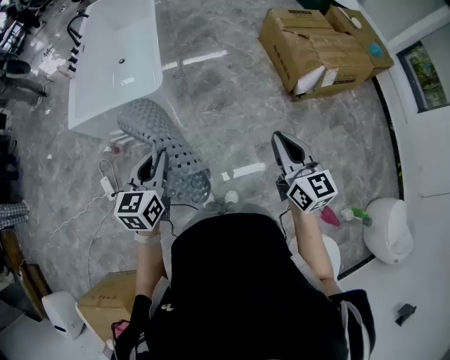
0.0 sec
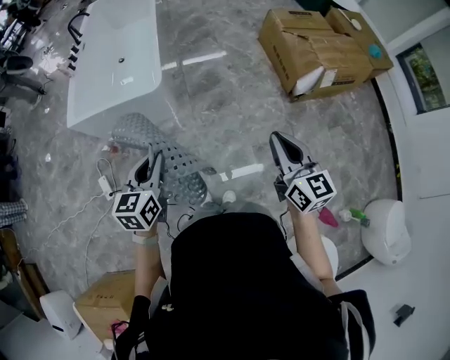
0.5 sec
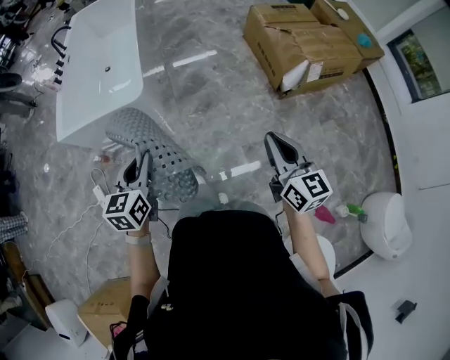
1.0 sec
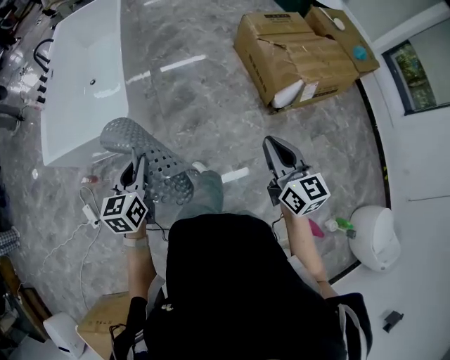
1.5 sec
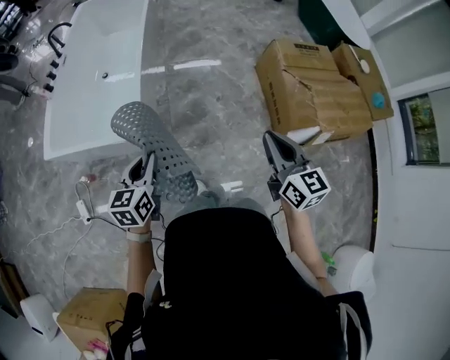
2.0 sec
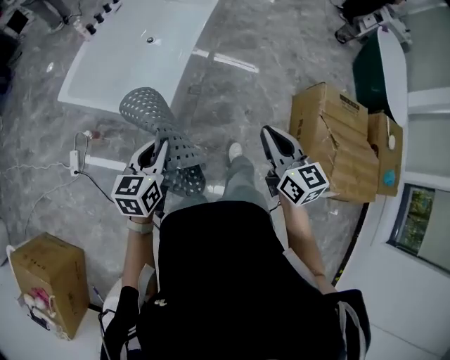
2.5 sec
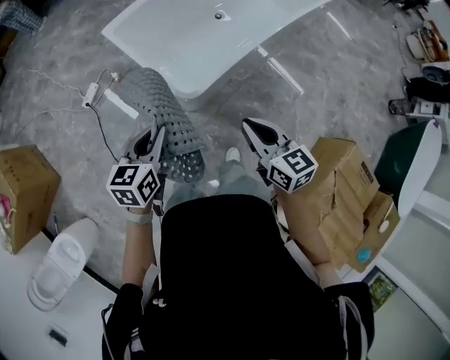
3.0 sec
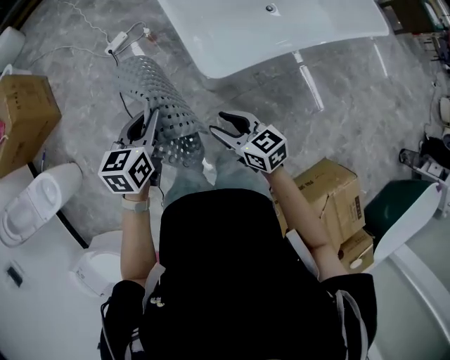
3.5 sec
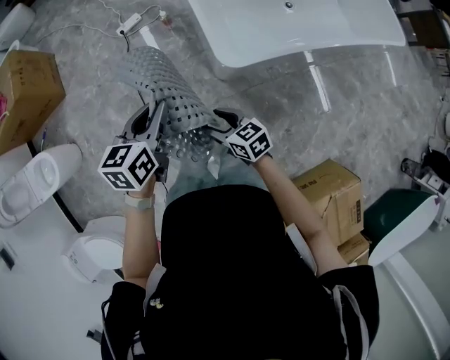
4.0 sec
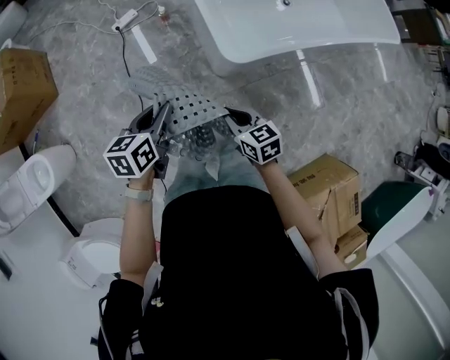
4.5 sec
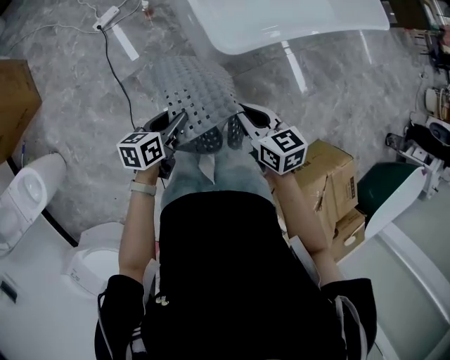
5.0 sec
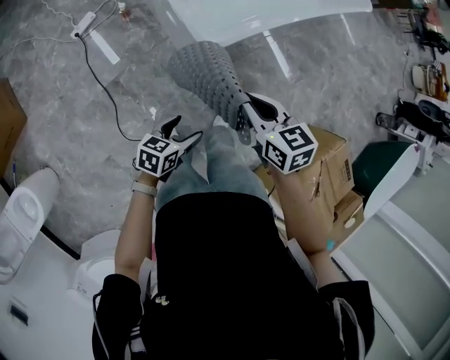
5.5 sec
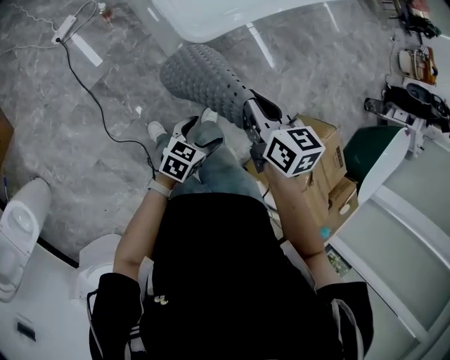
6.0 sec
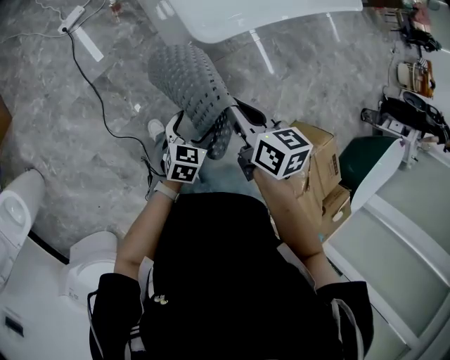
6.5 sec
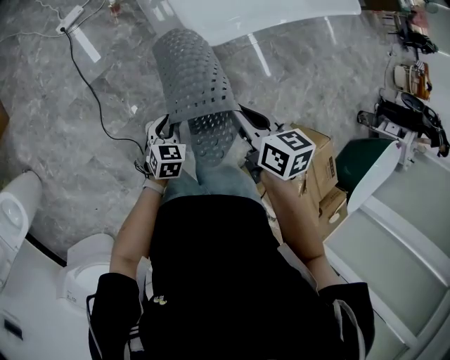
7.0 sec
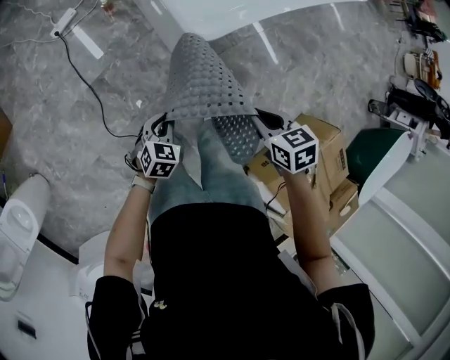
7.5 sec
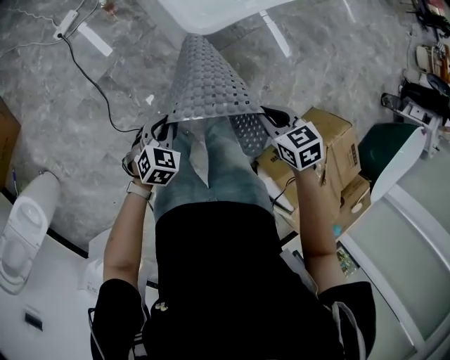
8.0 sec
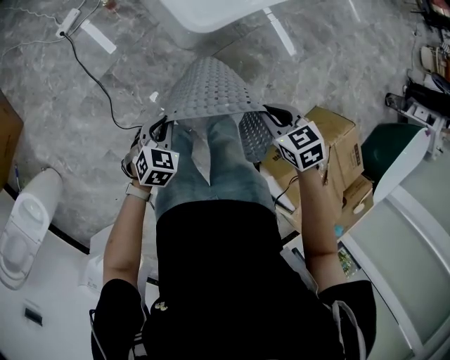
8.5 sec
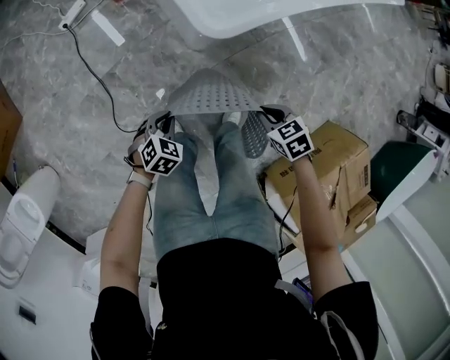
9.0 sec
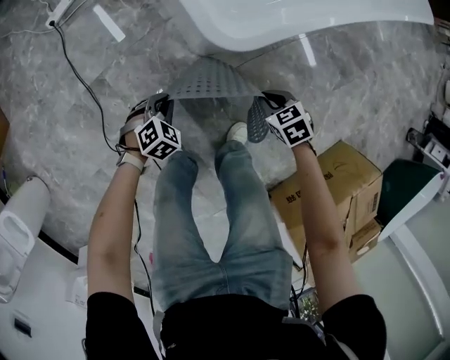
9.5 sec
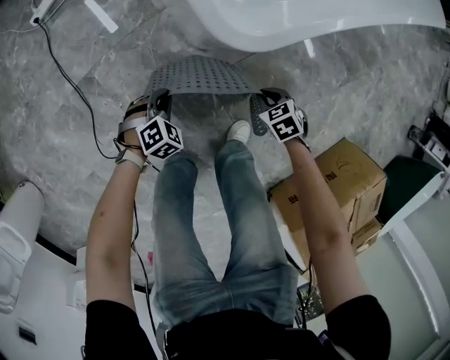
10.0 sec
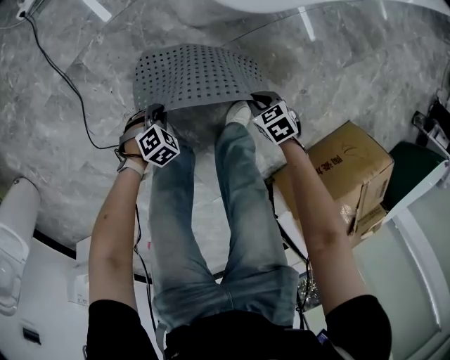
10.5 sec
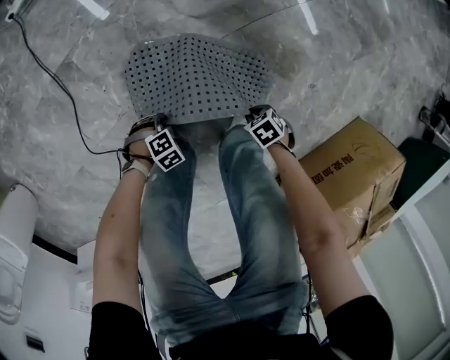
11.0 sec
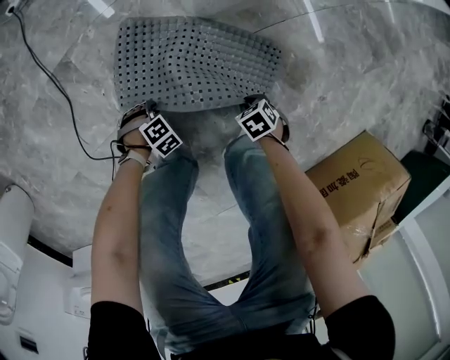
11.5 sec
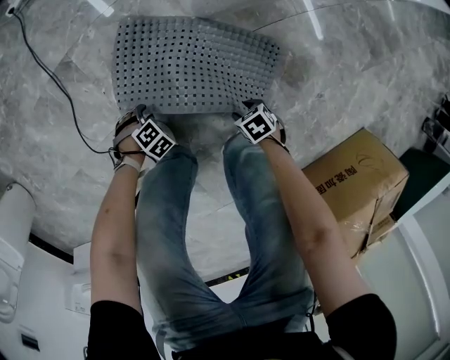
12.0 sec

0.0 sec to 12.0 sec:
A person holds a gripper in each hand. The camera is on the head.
0.0 sec to 2.0 sec: Both grippers move forward, approximately 35 cm.
2.0 sec to 4.0 sec: The right gripper ends up approximately 40 cm from where it was, swivels some 110 degrees, and opens. Meanwhile the left gripper changes place by some 10 cm, and rotates roughly 70 degrees.
4.0 sec to 6.0 sec: The left gripper changes place by roughly 30 cm, changes its angle by roughly 50 degrees, and opens up; the right gripper is displaced upward by roughly 10 cm, swivels approximately 40 degrees, and closes.
6.0 sec to 8.0 sec: The right gripper goes some 15 cm downward, and rotates about 30 degrees. The left gripper ends up some 15 cm from where it was, turns by approximately 40 degrees, and closes.
8.0 sec to 10.0 sec: Both grippers move downward, some 40 cm. The left gripper swivels approximately 20 degrees.
10.0 sec to 12.0 sec: The grippers both shift downward by about 20 cm. The right gripper swivels approximately 20 degrees, and opens, while the left gripper rotates roughly 30 degrees.

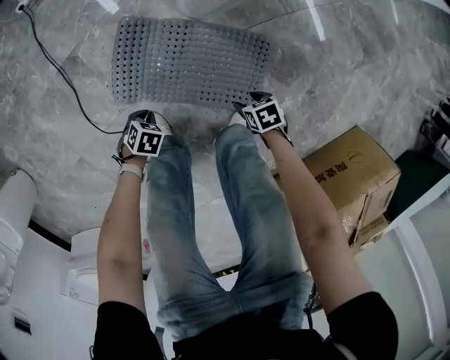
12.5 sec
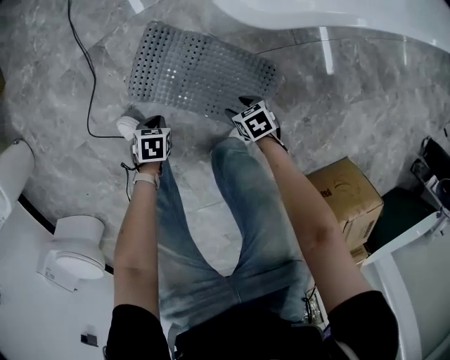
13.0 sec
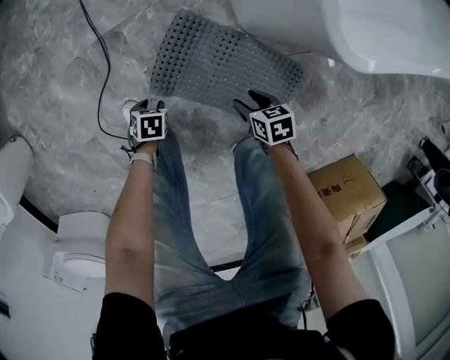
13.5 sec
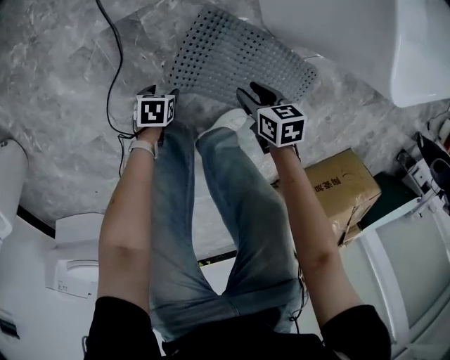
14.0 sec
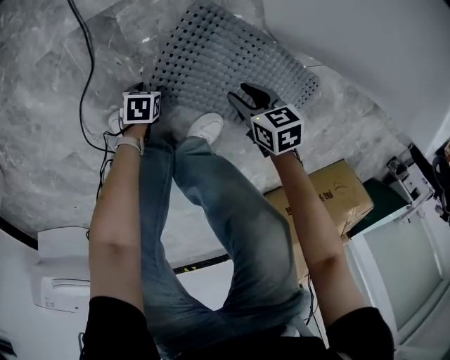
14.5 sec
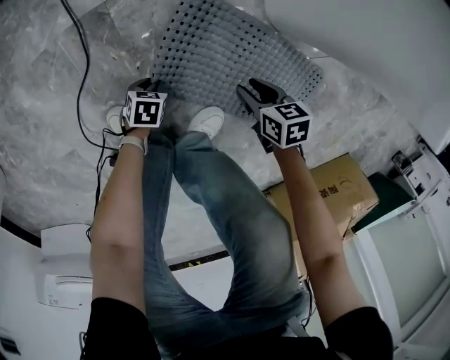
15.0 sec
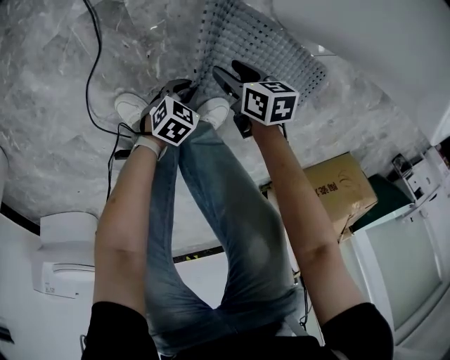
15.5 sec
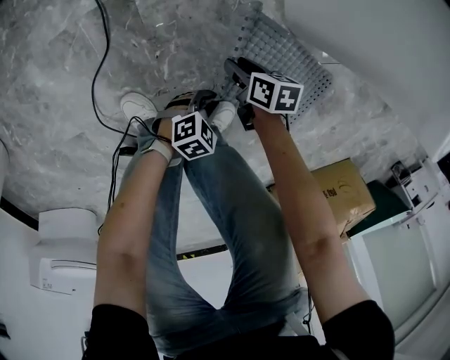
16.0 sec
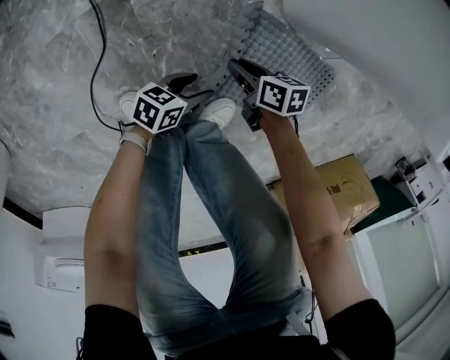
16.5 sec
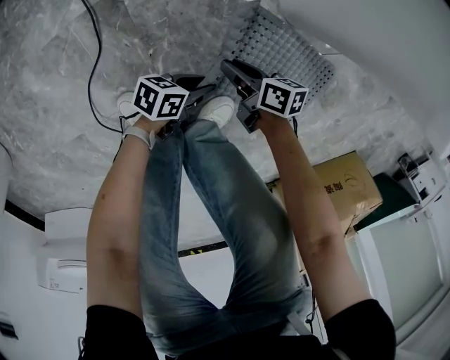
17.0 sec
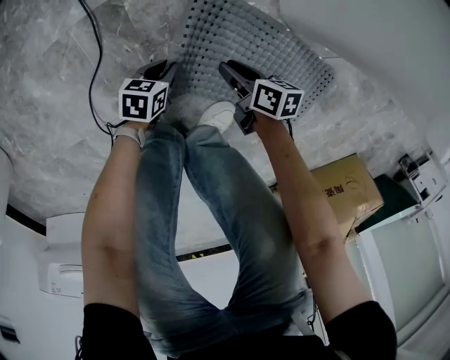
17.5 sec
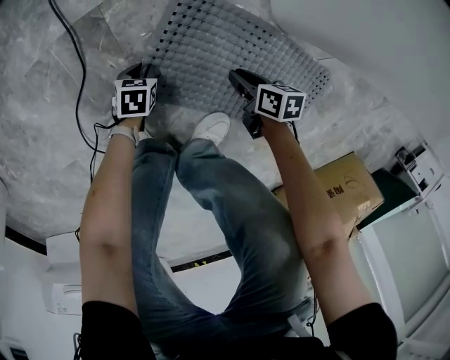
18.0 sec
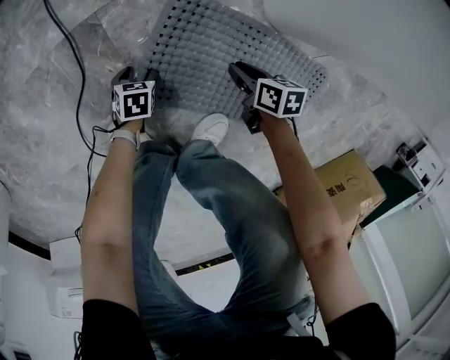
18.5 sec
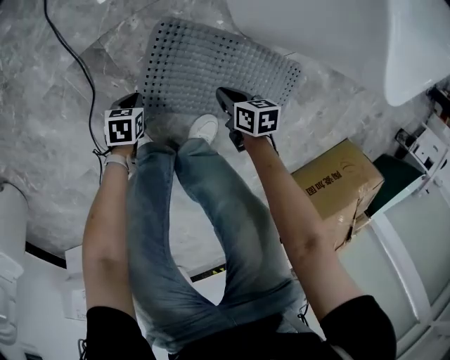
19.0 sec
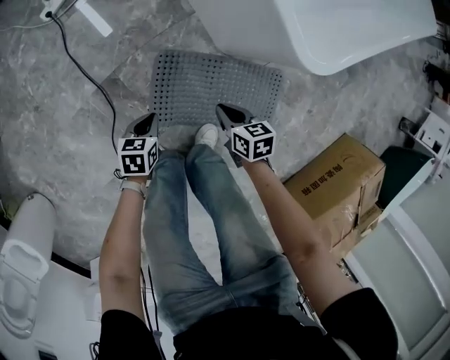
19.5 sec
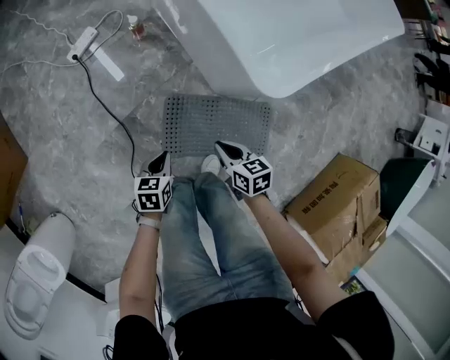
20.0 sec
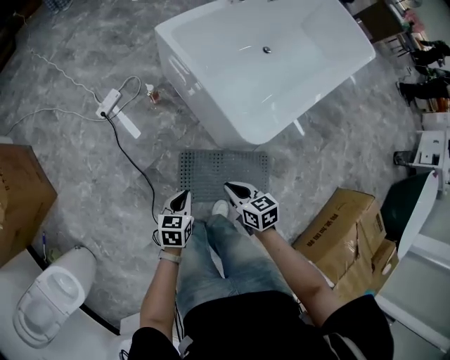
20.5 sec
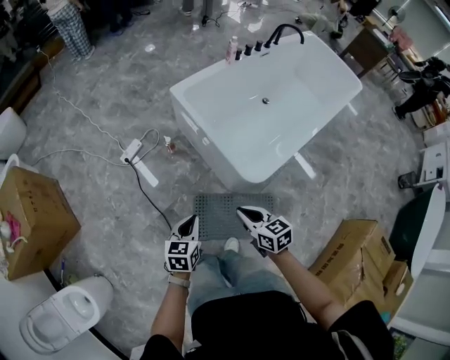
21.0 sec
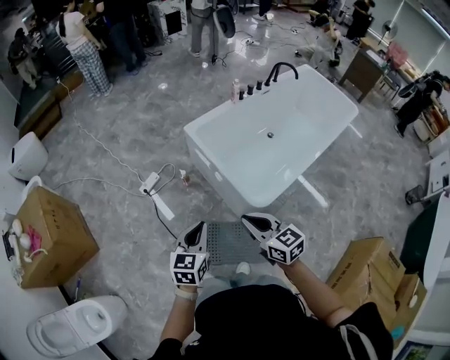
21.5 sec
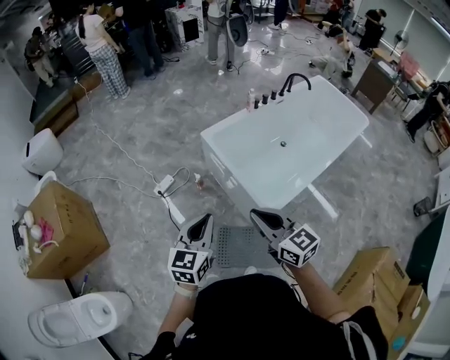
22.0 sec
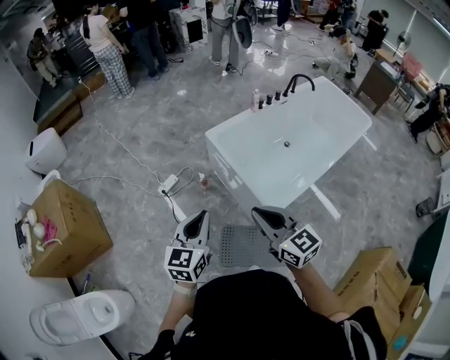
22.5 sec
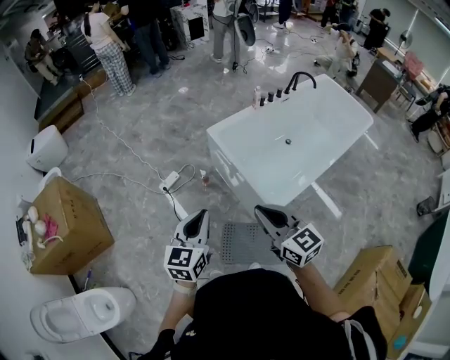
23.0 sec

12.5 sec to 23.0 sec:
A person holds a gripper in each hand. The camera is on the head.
12.5 sec to 14.5 sec: The right gripper travels upward and back again, approximately 5 cm each way; the left gripper ends up about 25 cm from where it was, turns by roughly 40 degrees, and opens.
14.5 sec to 16.5 sec: The right gripper shifts by about 5 cm, turns by some 30 degrees, and closes up; the left gripper shifts approximately 10 cm upward, tips its fingers upward by roughly 40 degrees, and closes, then reopens.
16.5 sec to 19.0 sec: The left gripper goes downward and returns, about 15 cm each way, angles its fingers downward, by roughly 30 degrees, and closes its fingers; the right gripper moves upward, roughly 5 cm.
19.0 sec to 21.0 sec: The two grippers go approximately 70 cm upward. The left gripper angles its fingers upward, by about 30 degrees. Meanwhile the right gripper rotates approximately 40 degrees.
21.0 sec to 23.0 sec: Both grippers travel together upward, roughly 30 cm. The right gripper changes its angle by approximately 30 degrees; the left gripper changes its angle by roughly 30 degrees.

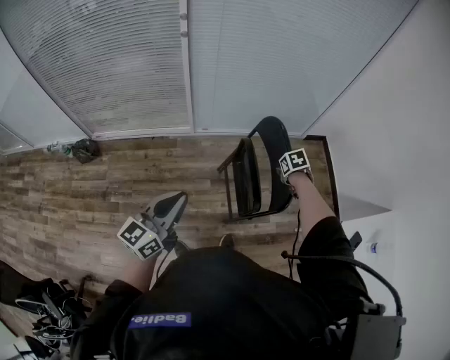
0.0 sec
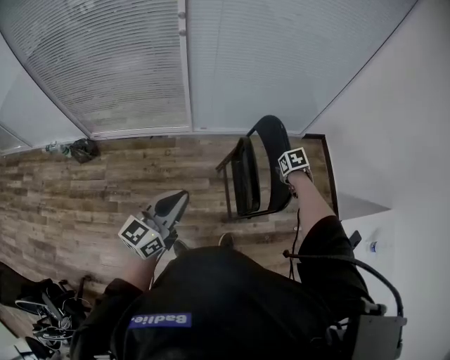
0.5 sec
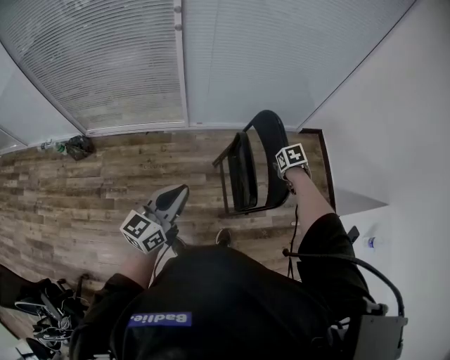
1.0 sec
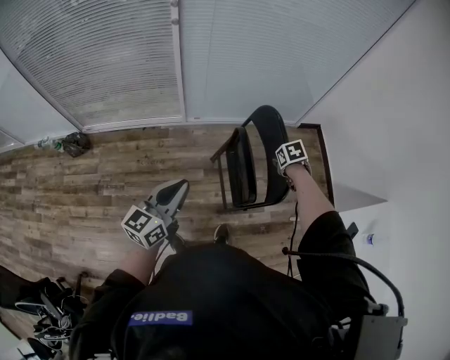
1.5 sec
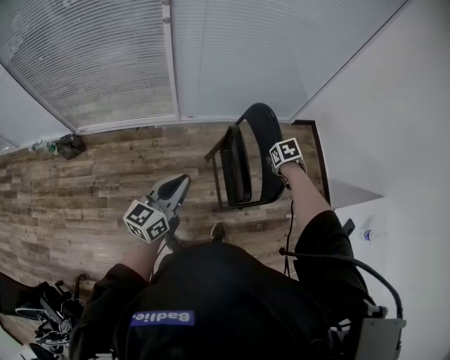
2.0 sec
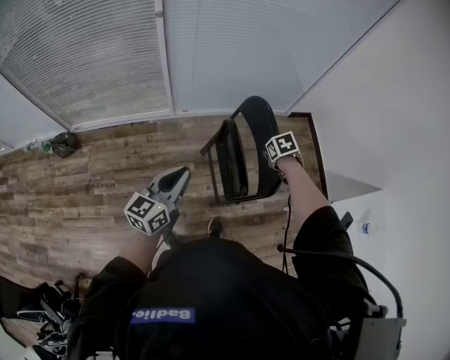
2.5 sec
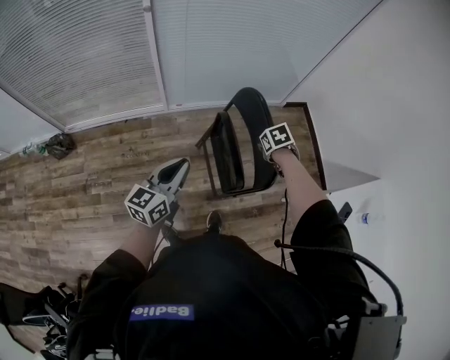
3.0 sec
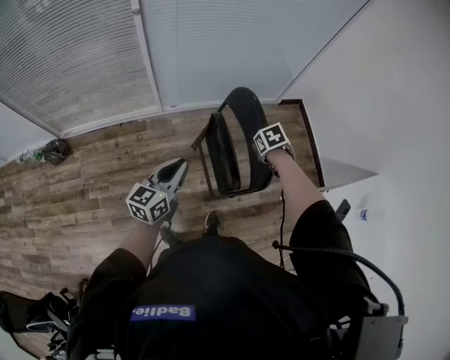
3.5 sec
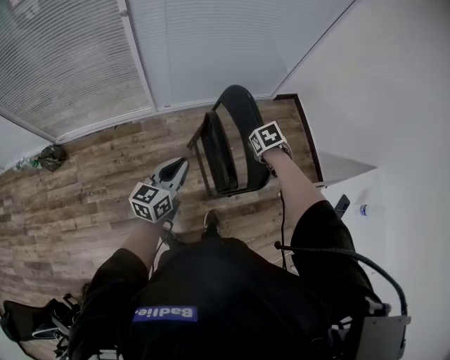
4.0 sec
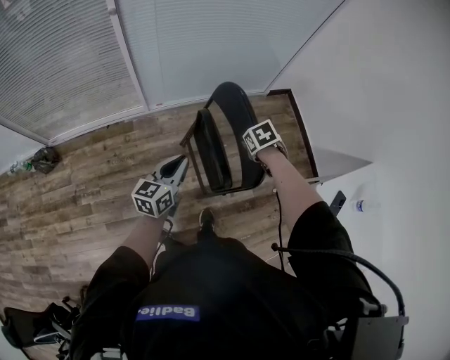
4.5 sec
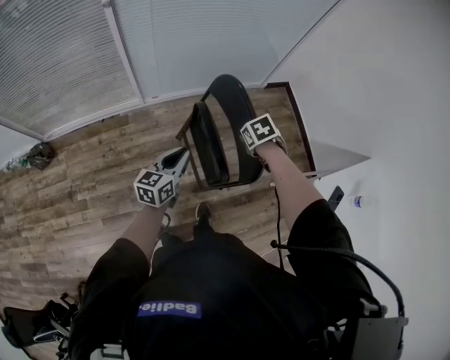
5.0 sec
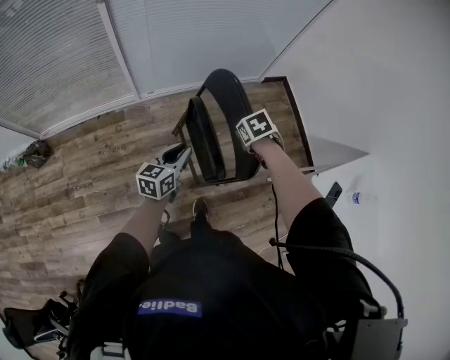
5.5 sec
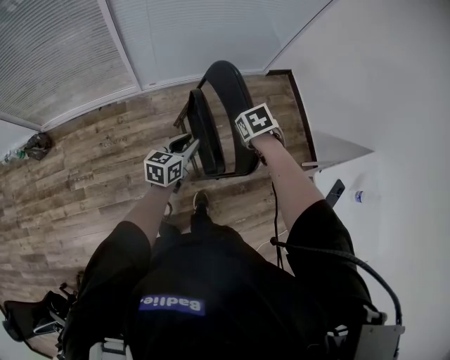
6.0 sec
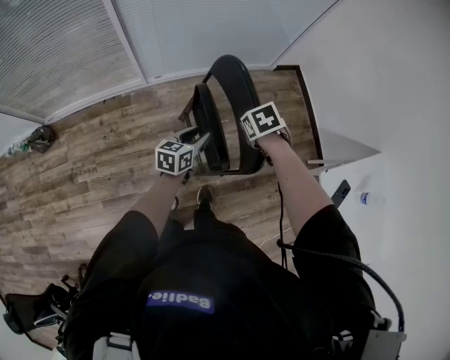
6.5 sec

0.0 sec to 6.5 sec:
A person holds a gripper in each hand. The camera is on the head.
0.0 sec to 2.0 sec: The left gripper shifts by some 10 cm.
2.0 sec to 4.5 sec: The left gripper moves some 15 cm.
4.5 sec to 6.5 sec: The left gripper moves downward, approximately 10 cm, and opens.
